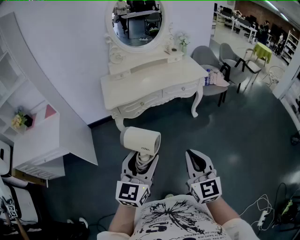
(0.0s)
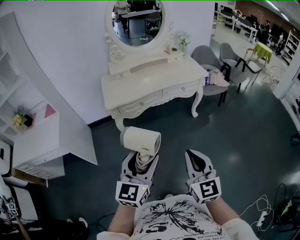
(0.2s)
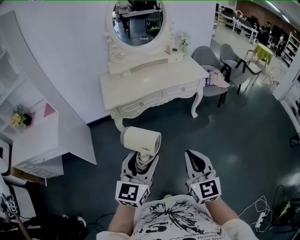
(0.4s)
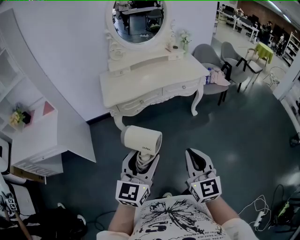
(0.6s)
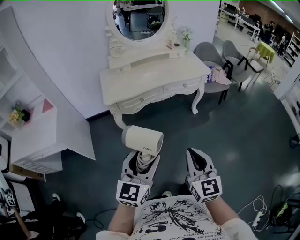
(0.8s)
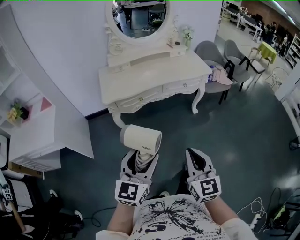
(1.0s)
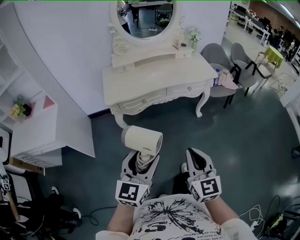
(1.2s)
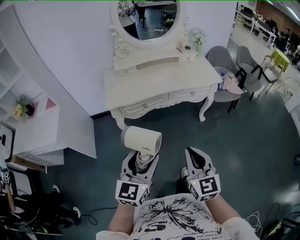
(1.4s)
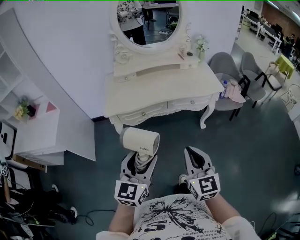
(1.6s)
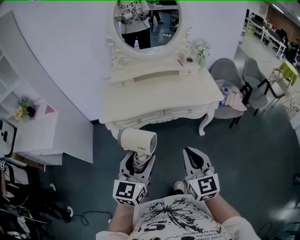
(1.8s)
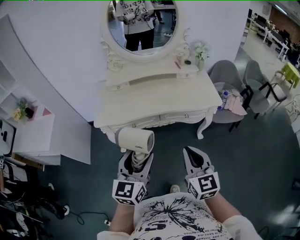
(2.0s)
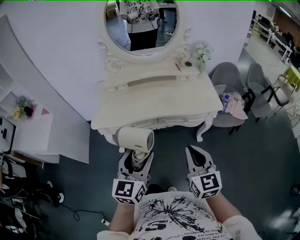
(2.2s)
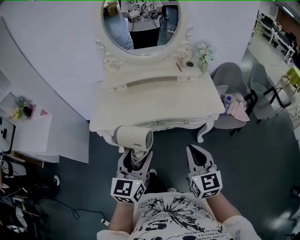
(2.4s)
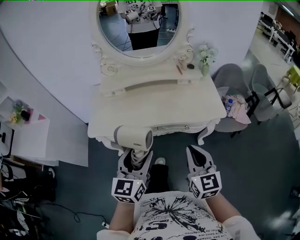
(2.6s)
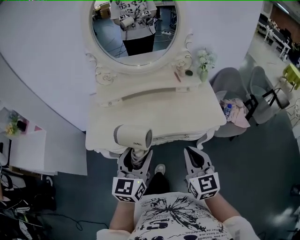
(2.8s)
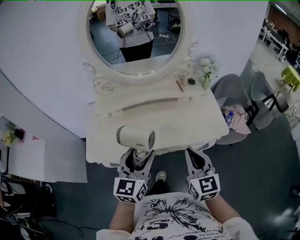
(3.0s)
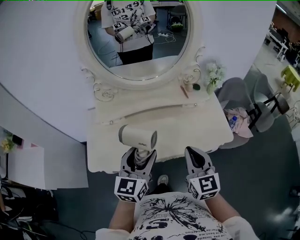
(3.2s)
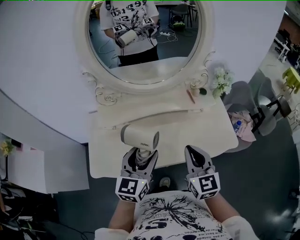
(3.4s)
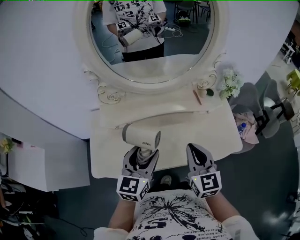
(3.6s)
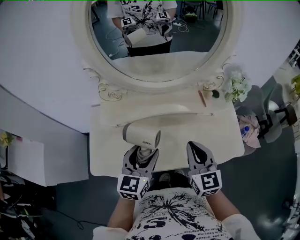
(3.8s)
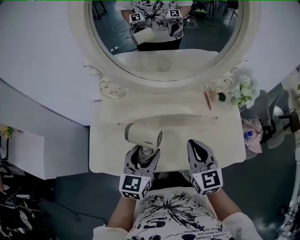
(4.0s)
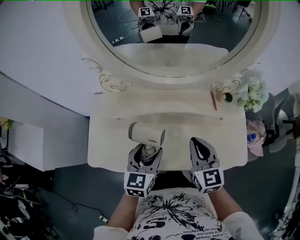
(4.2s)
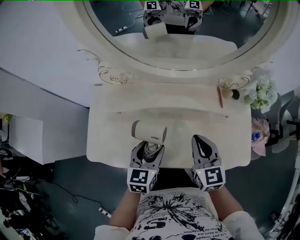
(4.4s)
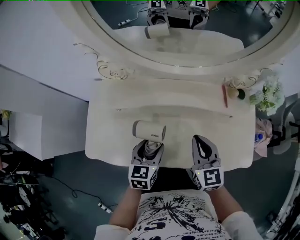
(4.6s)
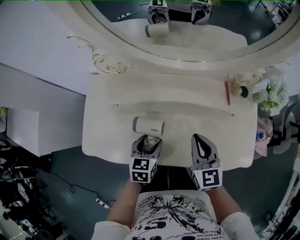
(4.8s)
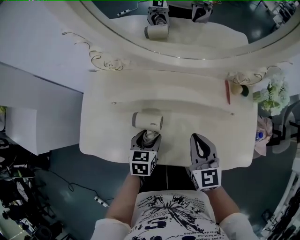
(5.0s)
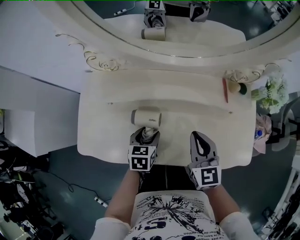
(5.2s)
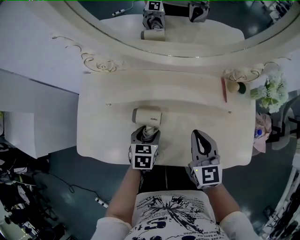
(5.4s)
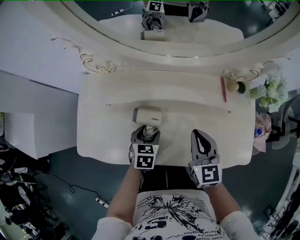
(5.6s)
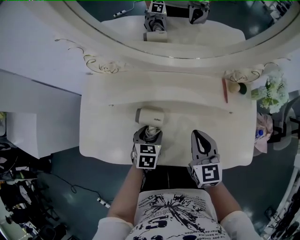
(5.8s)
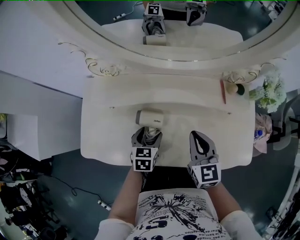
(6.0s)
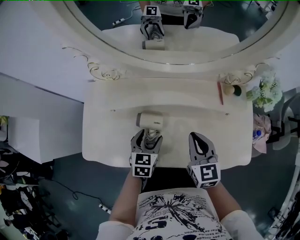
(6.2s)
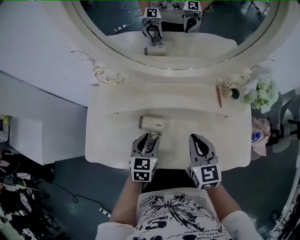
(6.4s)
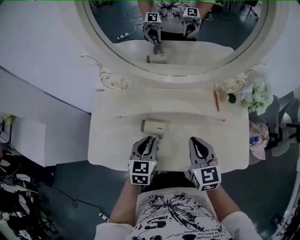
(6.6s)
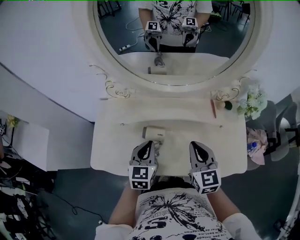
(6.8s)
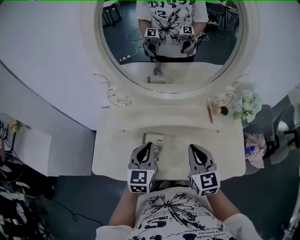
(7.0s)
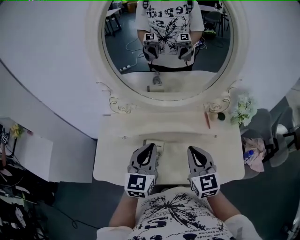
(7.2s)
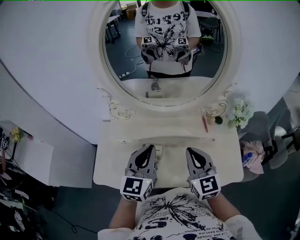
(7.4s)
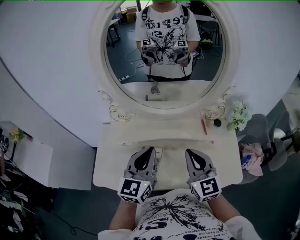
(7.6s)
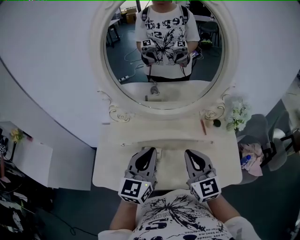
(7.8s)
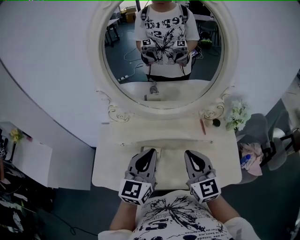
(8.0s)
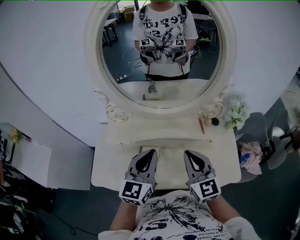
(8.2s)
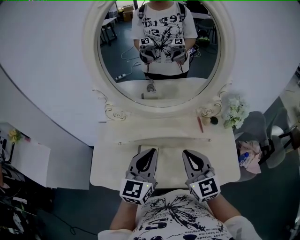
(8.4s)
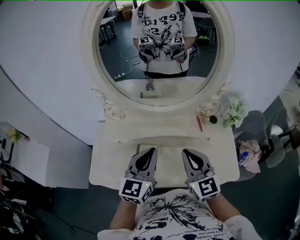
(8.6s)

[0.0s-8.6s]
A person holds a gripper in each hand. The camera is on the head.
0.0s to 1.4s: The two grippers go approximately 10 cm forward.
1.4s to 2.8s: The right gripper moves forward and to the right, some 40 cm, while the left gripper is displaced forward by about 35 cm.
2.8s to 4.4s: The left gripper goes some 30 cm forward and downward, and swivels approximately 20 degrees. Meanwhile the right gripper shifts roughly 30 cm forward.
4.4s to 5.8s: The left gripper goes roughly 15 cm downward, and rotates approximately 20 degrees; the right gripper travels downward by some 5 cm.
5.8s to 7.2s: The left gripper goes approximately 30 cm upward, tips its fingers upward by some 40 degrees, and closes its fingers. Meanwhile the right gripper is displaced upward by about 15 cm.
7.2s to 8.6s: The left gripper moves some 5 cm.

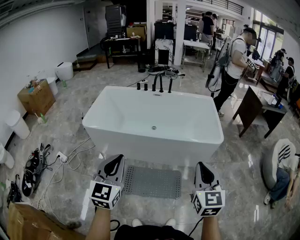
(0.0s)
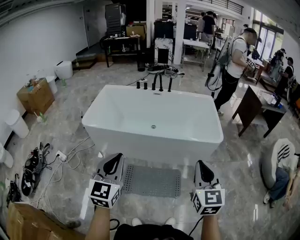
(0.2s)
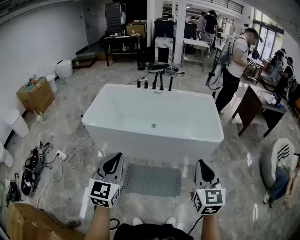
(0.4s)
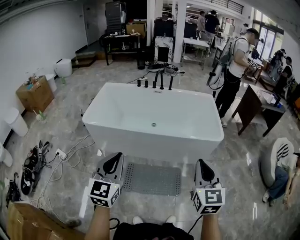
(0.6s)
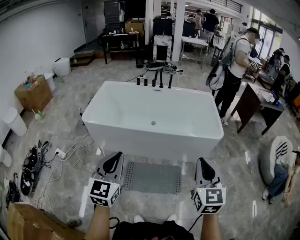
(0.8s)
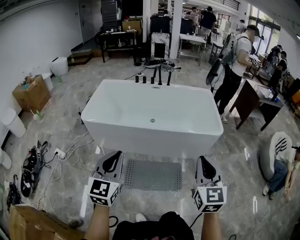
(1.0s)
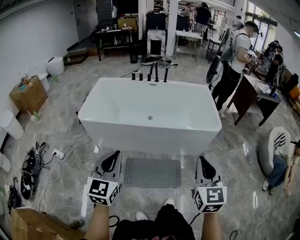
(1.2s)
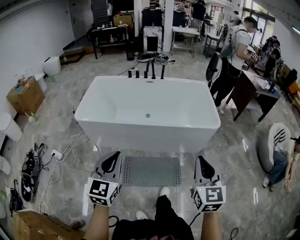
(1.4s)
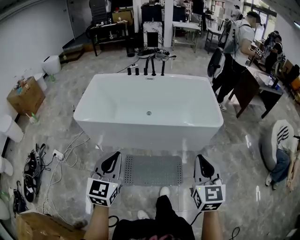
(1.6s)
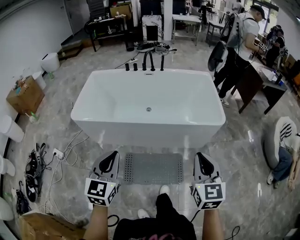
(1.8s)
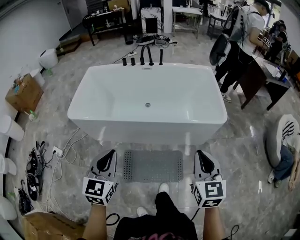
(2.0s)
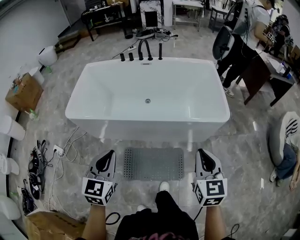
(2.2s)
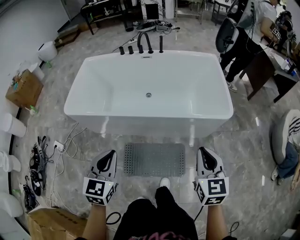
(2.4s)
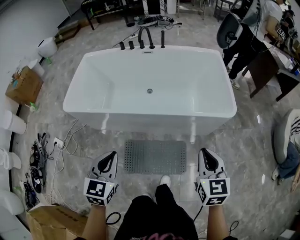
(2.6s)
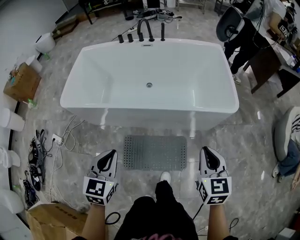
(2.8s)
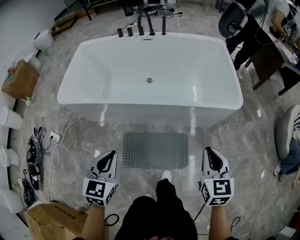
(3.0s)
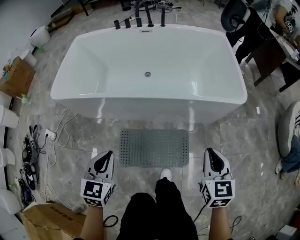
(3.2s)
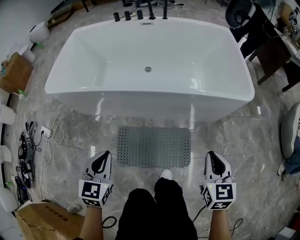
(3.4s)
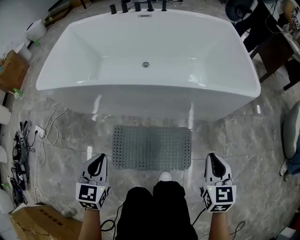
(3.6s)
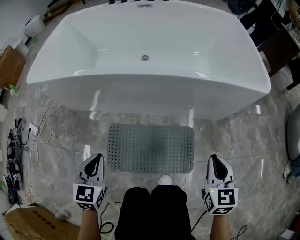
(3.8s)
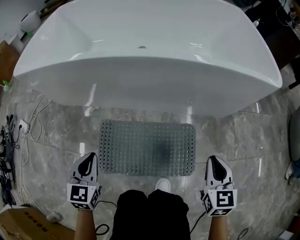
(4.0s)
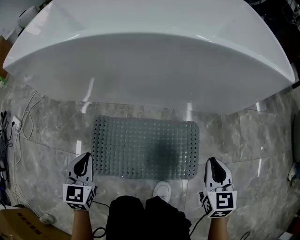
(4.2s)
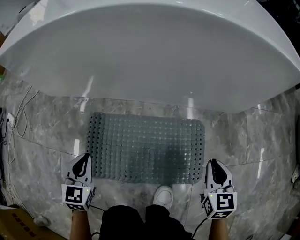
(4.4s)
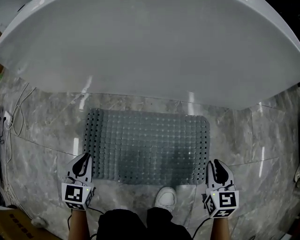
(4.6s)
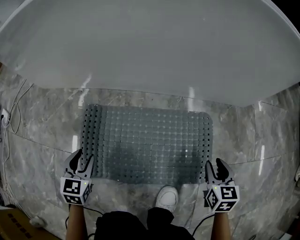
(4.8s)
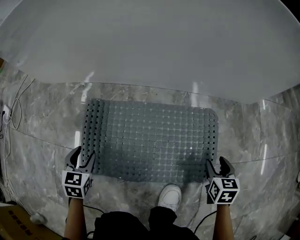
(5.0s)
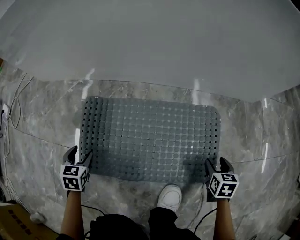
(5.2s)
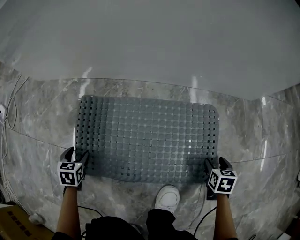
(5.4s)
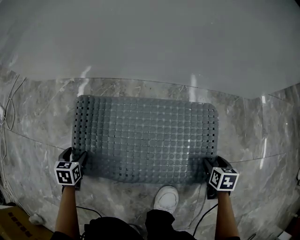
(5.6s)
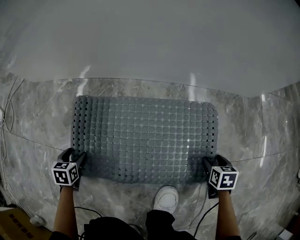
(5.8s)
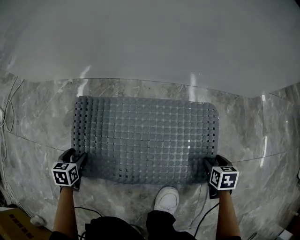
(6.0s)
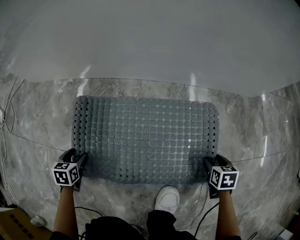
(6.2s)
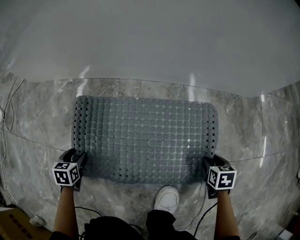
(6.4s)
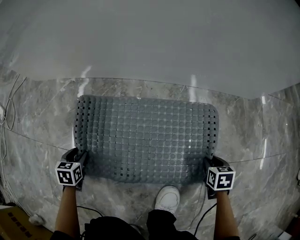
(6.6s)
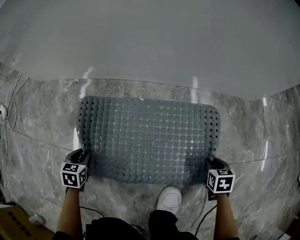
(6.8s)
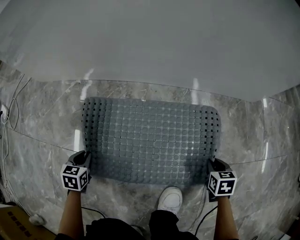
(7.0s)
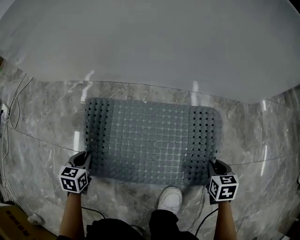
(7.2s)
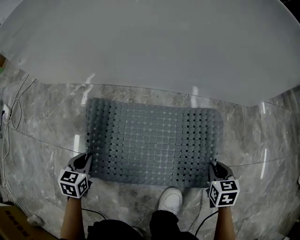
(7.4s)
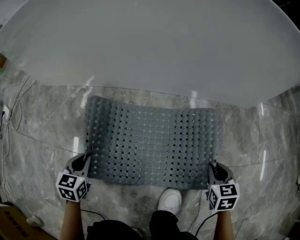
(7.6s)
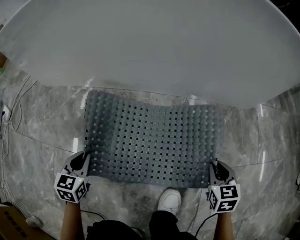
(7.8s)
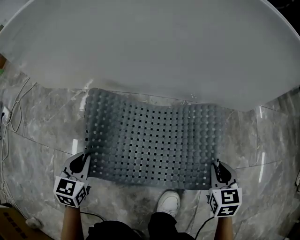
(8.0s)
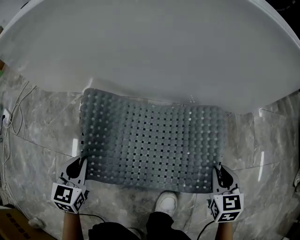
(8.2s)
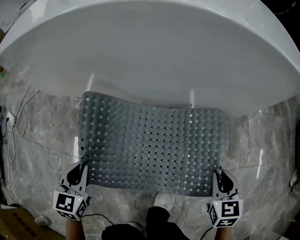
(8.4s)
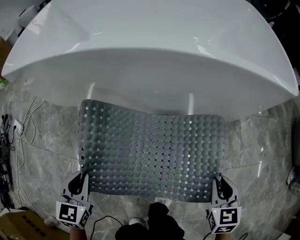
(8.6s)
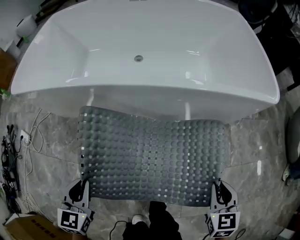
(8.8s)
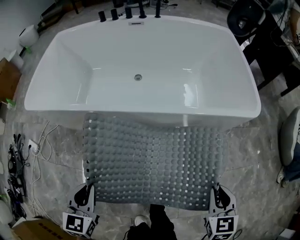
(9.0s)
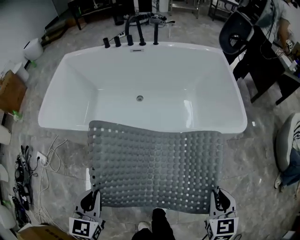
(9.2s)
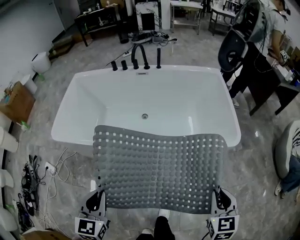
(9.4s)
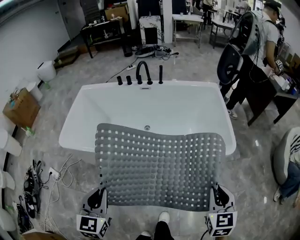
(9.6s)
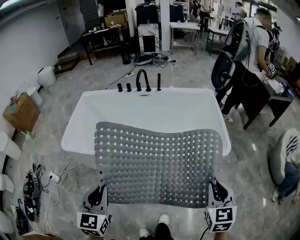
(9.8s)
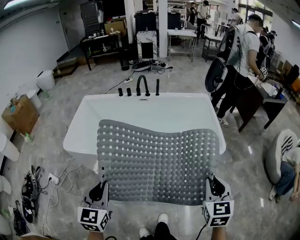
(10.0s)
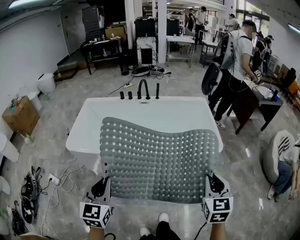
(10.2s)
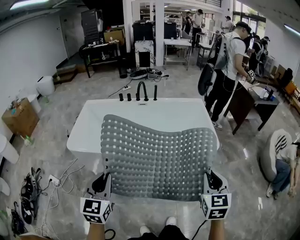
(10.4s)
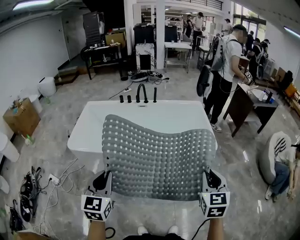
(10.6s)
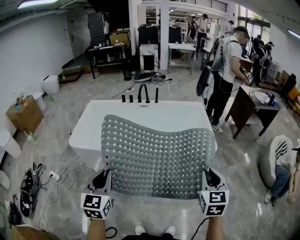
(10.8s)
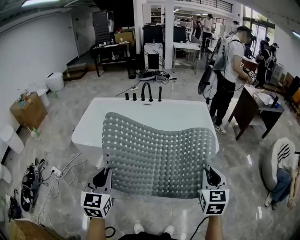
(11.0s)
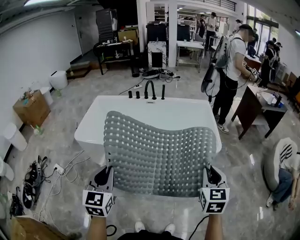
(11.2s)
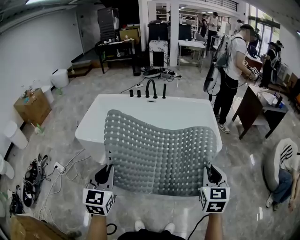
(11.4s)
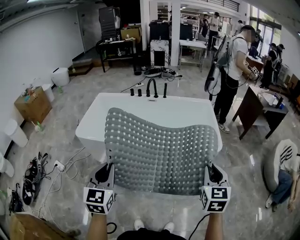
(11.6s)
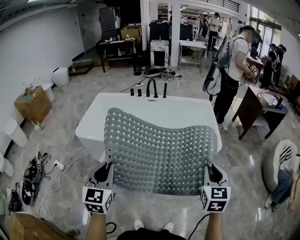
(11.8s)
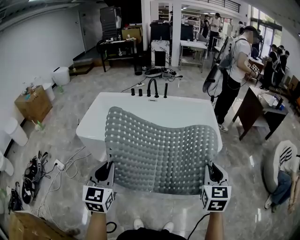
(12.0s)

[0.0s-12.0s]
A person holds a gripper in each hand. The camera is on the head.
0.0s to 1.6s: The left gripper travels downward by some 5 cm.
1.6s to 3.0s: The two grippers go roughly 25 cm downward and forward.
3.0s to 4.4s: Both grippers move downward, roughly 60 cm.
4.4s to 6.0s: The right gripper is displaced downward by some 25 cm, points its fingers roughly 40 degrees further downward, and opens up; the left gripper heads downward and to the left, covering roughly 25 cm, points its fingers about 30 degrees further downward, and opens up.
6.0s to 7.6s: The right gripper moves upward and to the left, about 15 cm, rotates about 20 degrees, and closes up. The left gripper travels upward and to the right by about 10 cm, and closes.
7.6s to 9.0s: The two grippers go approximately 50 cm upward.
9.0s to 10.4s: Both grippers travel together upward, about 40 cm. The left gripper rotates about 20 degrees, while the right gripper changes its angle by roughly 20 degrees.
10.4s to 12.0s: The left gripper changes place by approximately 5 cm.

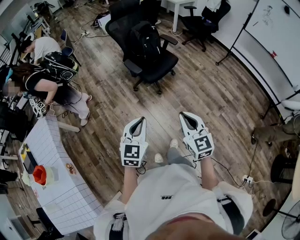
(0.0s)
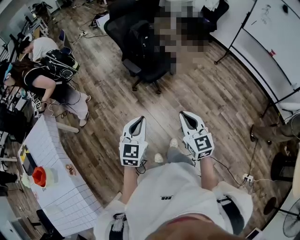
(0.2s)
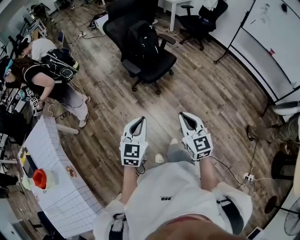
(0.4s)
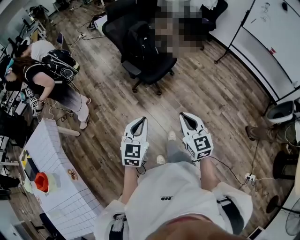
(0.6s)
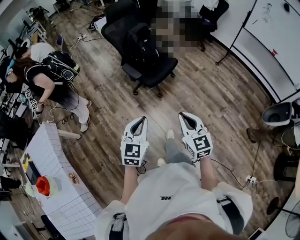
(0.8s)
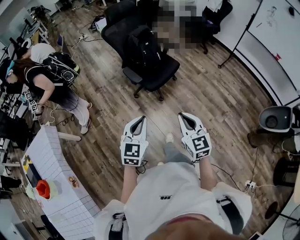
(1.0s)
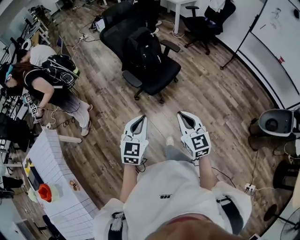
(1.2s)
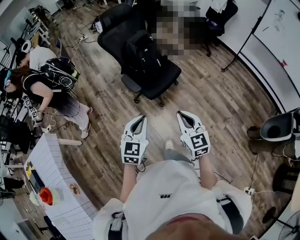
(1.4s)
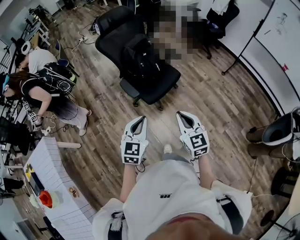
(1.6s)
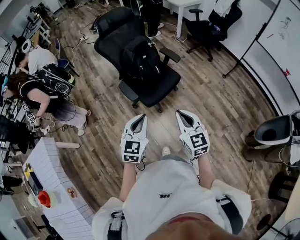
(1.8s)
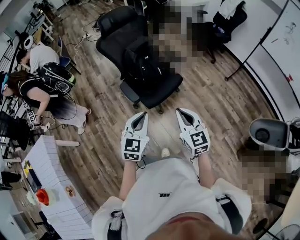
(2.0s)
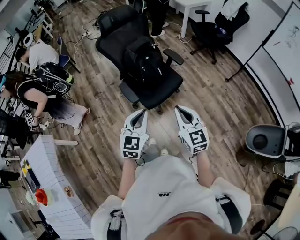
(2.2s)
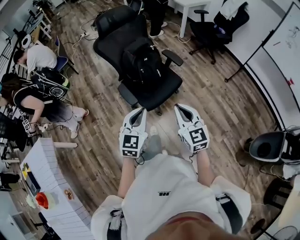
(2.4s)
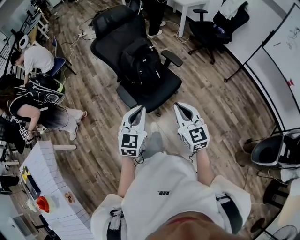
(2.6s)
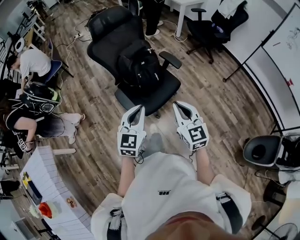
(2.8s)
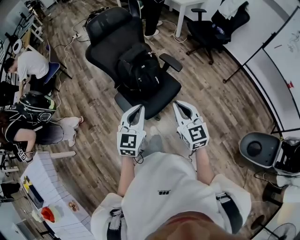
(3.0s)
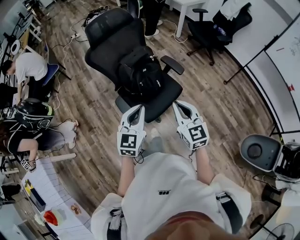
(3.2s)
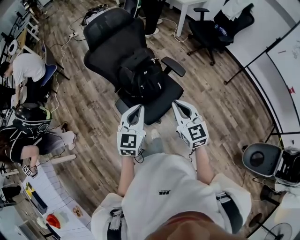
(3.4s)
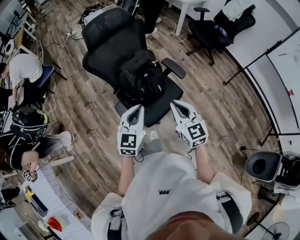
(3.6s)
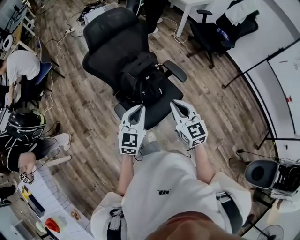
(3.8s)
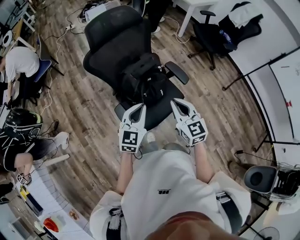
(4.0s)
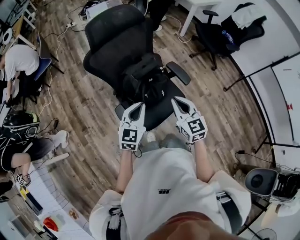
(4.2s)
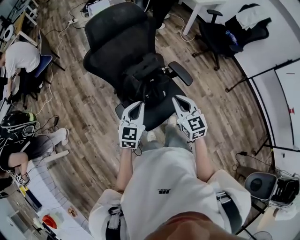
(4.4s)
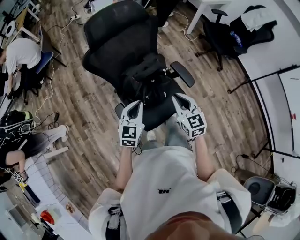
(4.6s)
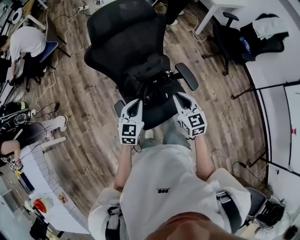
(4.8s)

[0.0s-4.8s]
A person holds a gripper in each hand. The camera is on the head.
0.0s to 1.6s: Both grippers travel together forward, some 30 cm.
1.6s to 3.2s: The grippers both shift forward by some 30 cm.
3.2s to 4.8s: The two grippers go approximately 30 cm forward and downward.
